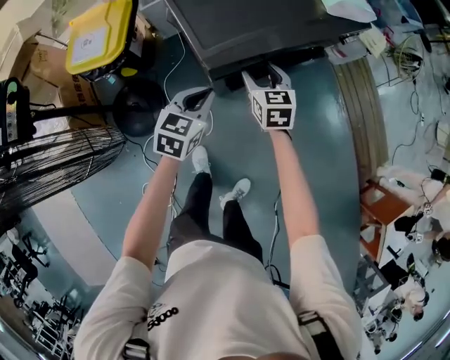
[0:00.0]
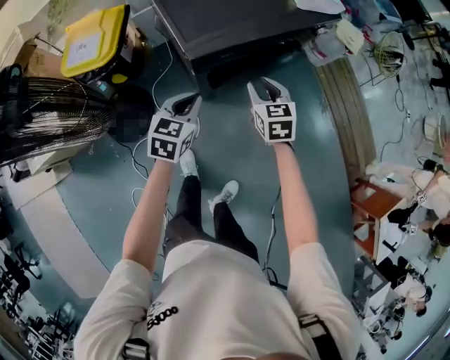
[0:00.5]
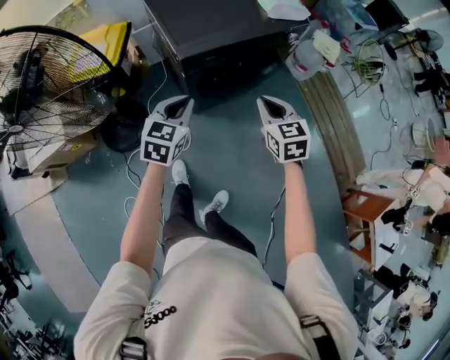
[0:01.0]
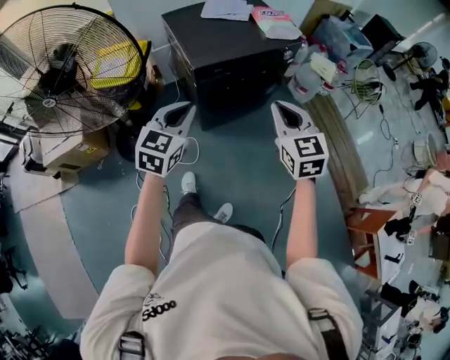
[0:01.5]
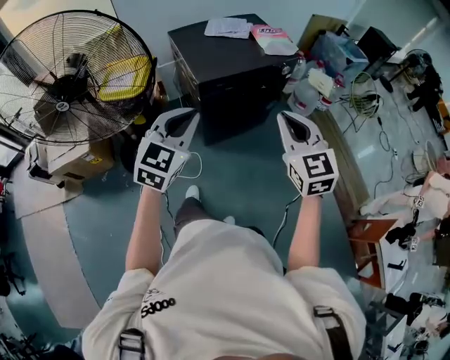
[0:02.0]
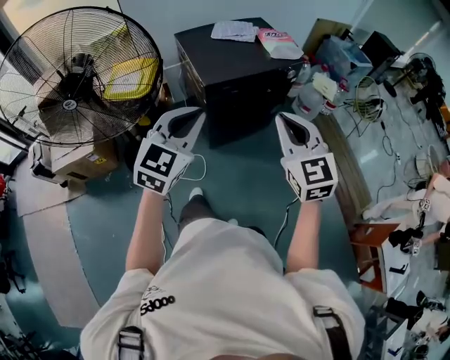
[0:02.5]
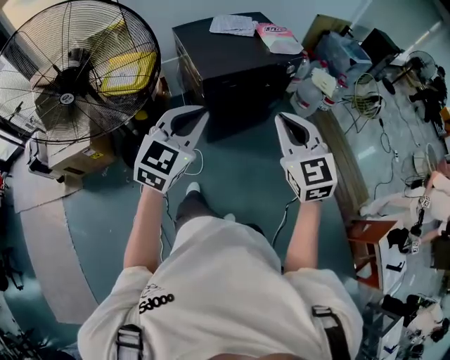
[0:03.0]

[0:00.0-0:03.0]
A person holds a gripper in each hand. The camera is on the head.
0:00.0 to 0:01.5: The left gripper heads backward and upward, covering roughly 35 cm, and swivels approximately 20 degrees; the right gripper shifts roughly 50 cm backward, upward and to the right, rotates roughly 20 degrees, and closes its fingers.
0:01.5 to 0:03.0: The right gripper heads backward and upward, covering some 10 cm. Meanwhile the left gripper moves upward and backward, about 10 cm.

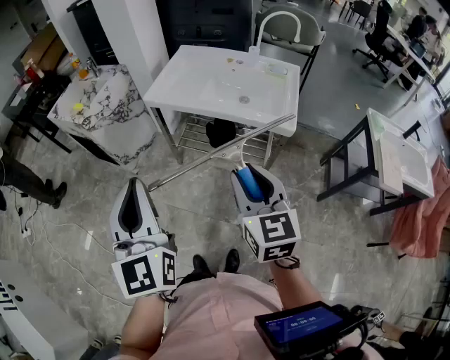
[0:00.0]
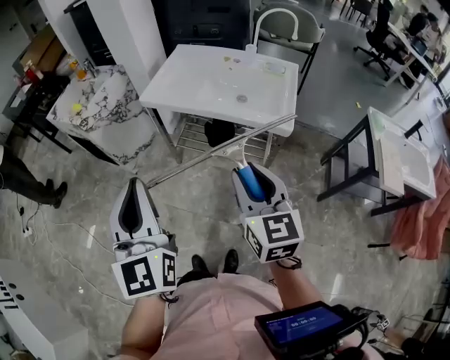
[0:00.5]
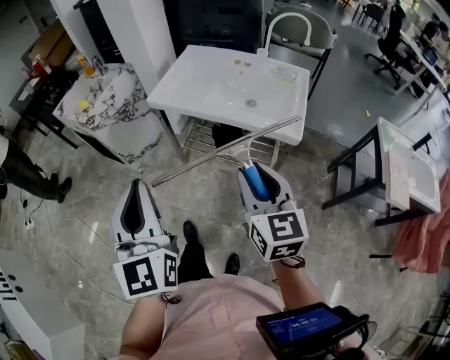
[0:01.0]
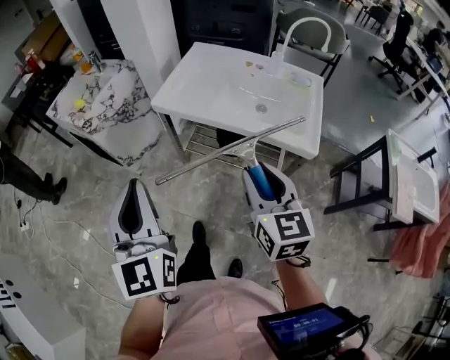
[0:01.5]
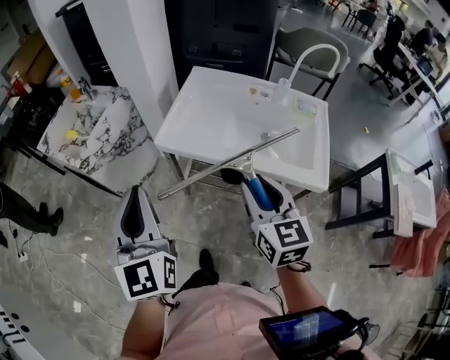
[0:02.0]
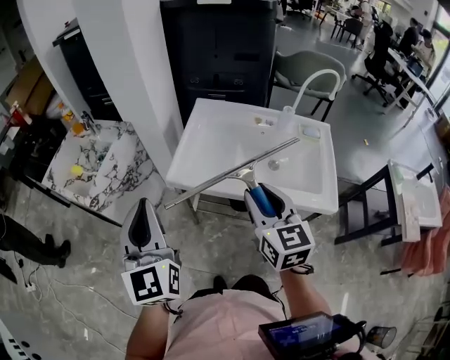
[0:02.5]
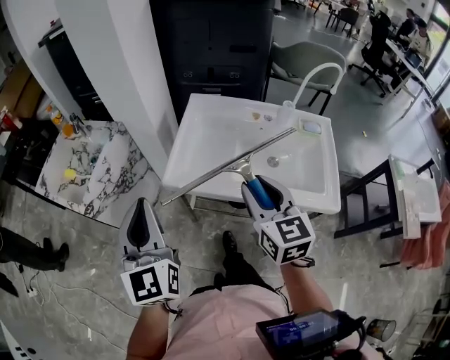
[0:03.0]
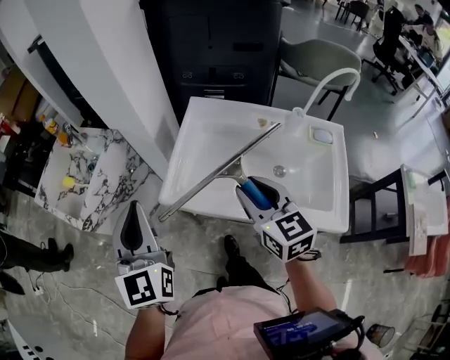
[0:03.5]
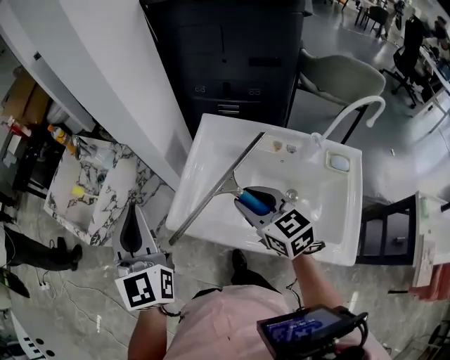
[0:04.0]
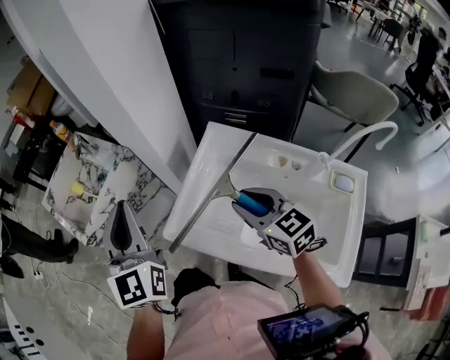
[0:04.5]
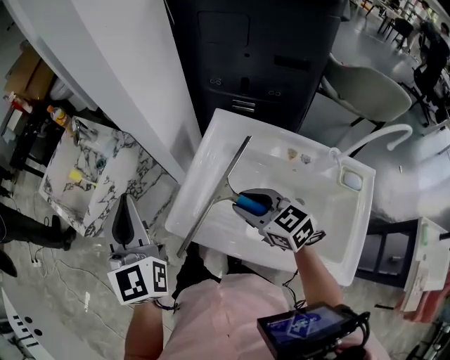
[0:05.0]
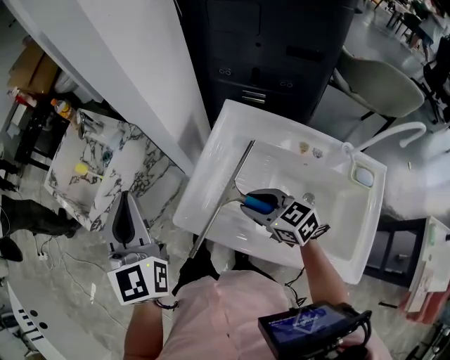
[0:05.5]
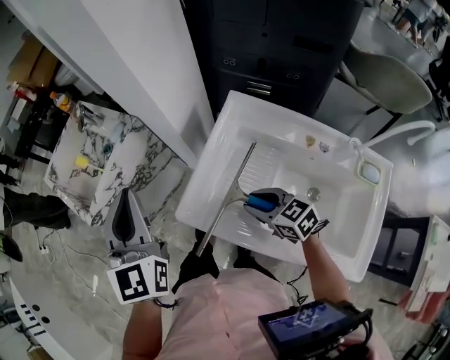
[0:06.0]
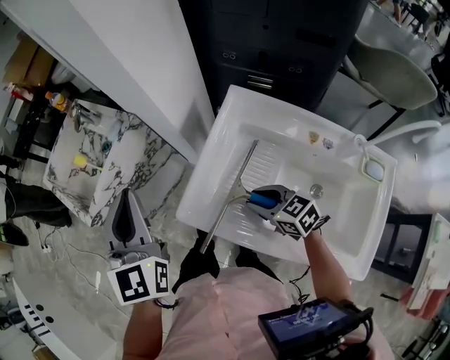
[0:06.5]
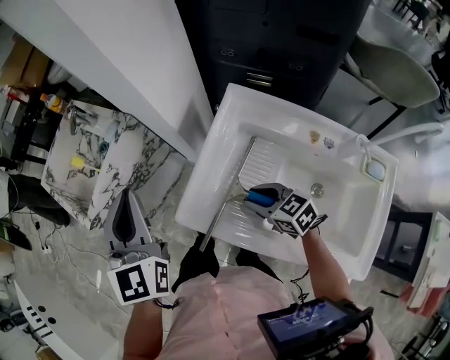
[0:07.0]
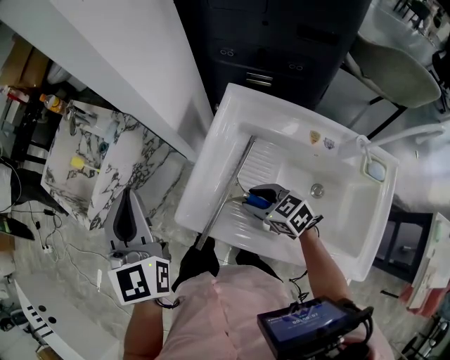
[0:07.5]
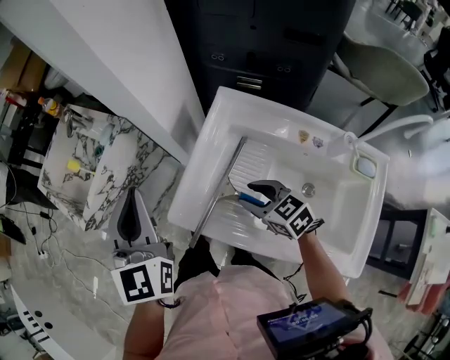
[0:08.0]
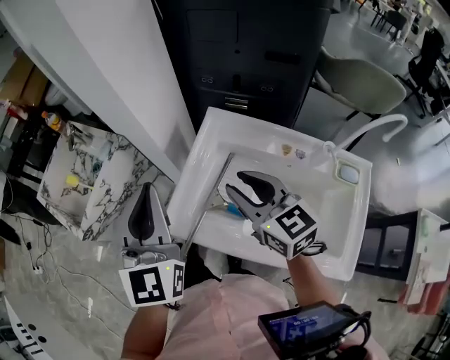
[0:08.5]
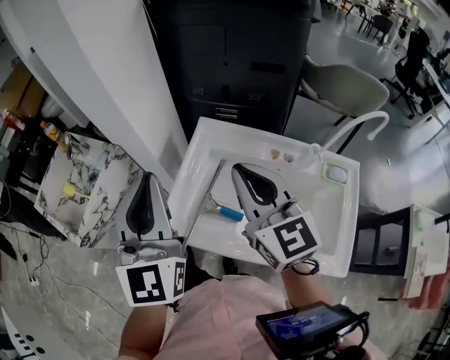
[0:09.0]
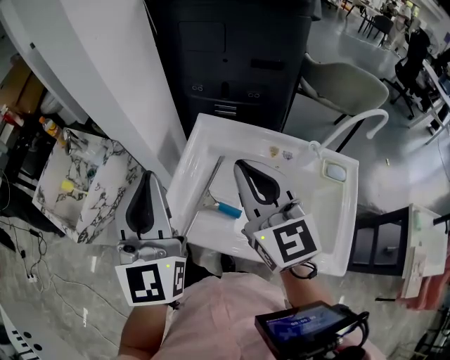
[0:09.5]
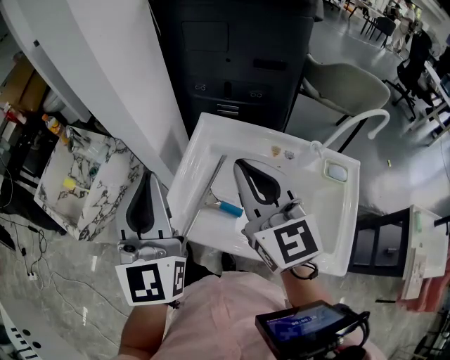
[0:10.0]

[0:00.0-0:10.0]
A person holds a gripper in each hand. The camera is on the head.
0:00.0 to 0:02.0: Both grippers travel together forward, some 25 cm.
0:02.0 to 0:04.0: Both grippers travel together forward, some 30 cm. The right gripper rotates approximately 20 degrees.
0:04.0 to 0:06.0: The right gripper is displaced downward by roughly 15 cm, and swivels roughly 30 degrees, while the left gripper moves forward, roughly 5 cm.
0:06.0 to 0:08.0: The grippers make only small movements.
0:08.0 to 0:10.0: The left gripper heads upward and to the right, covering approximately 10 cm. The right gripper travels upward by some 30 cm, angles its fingers upward, by some 30 degrees, and closes up.

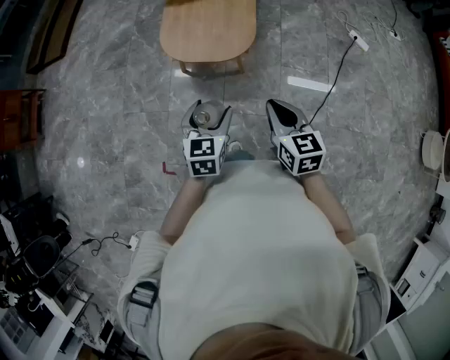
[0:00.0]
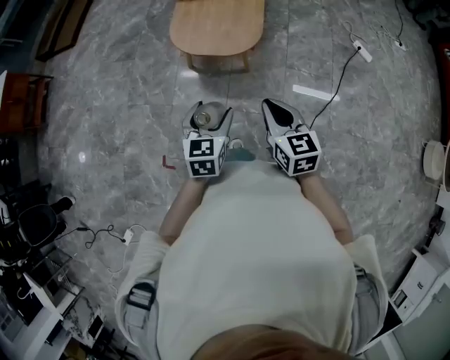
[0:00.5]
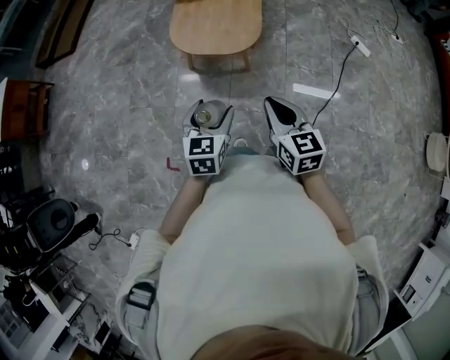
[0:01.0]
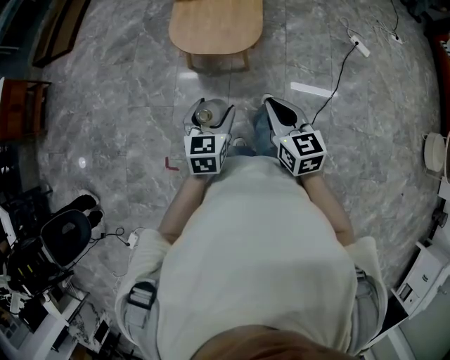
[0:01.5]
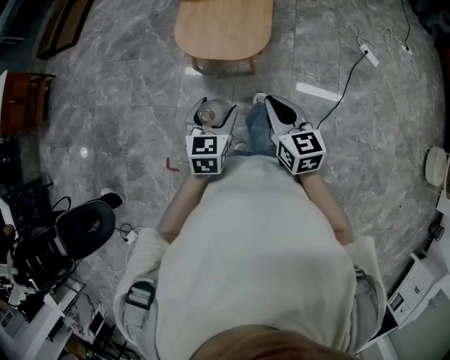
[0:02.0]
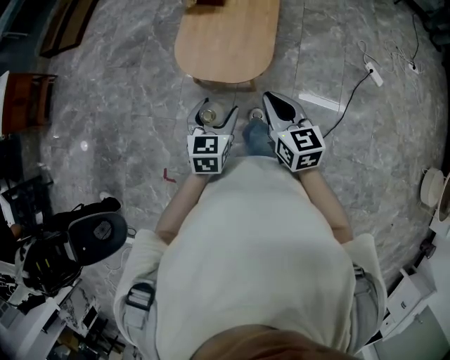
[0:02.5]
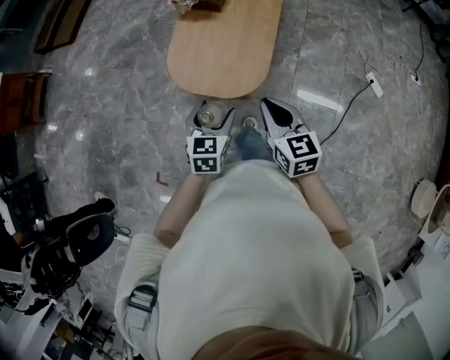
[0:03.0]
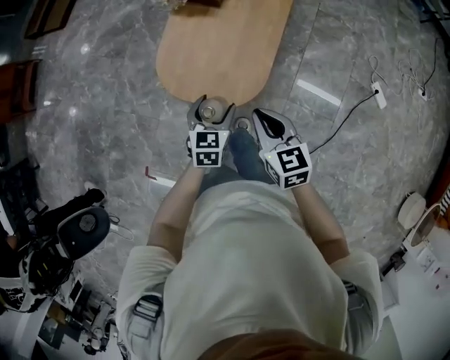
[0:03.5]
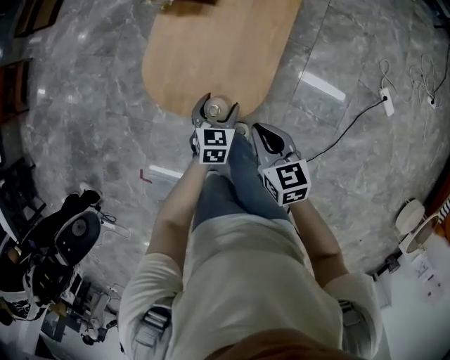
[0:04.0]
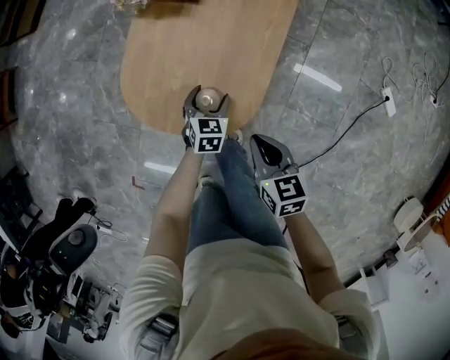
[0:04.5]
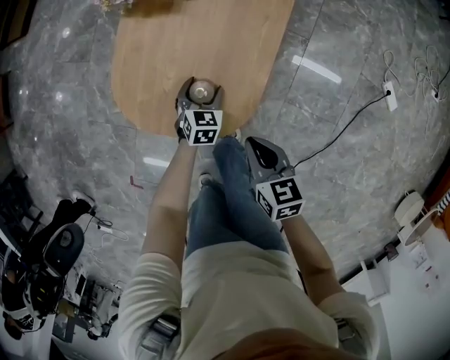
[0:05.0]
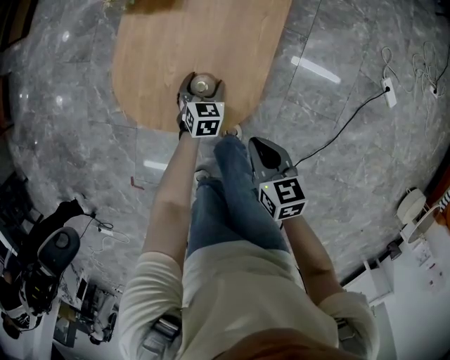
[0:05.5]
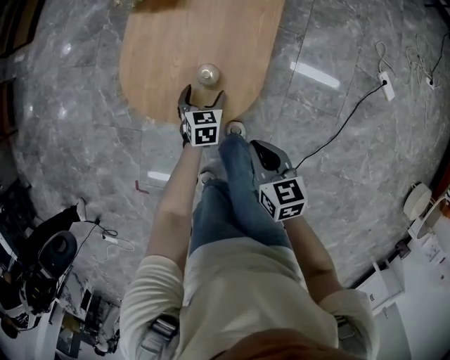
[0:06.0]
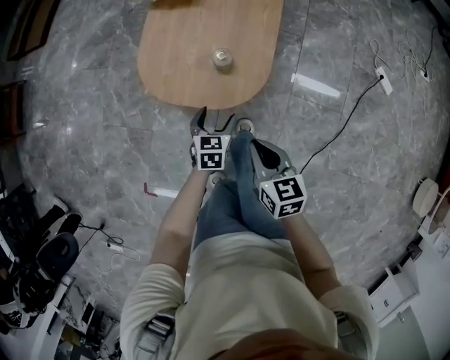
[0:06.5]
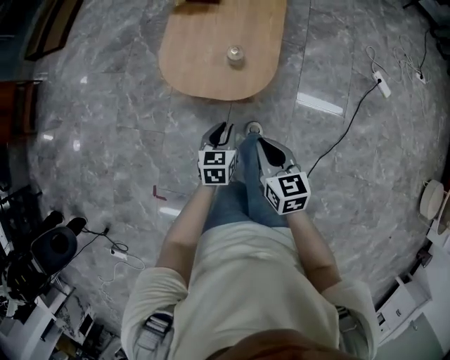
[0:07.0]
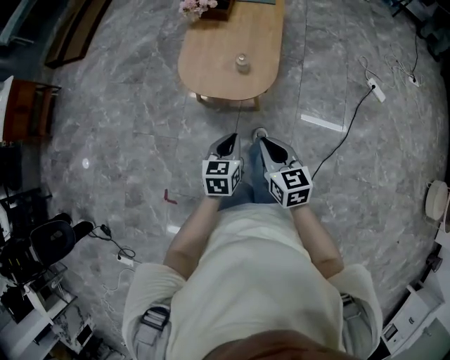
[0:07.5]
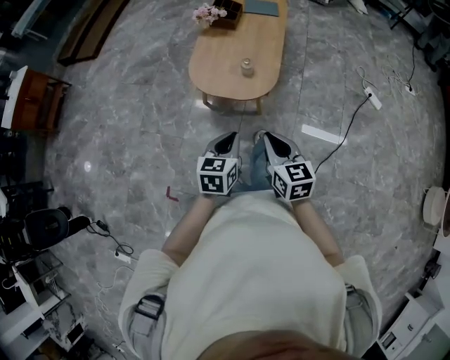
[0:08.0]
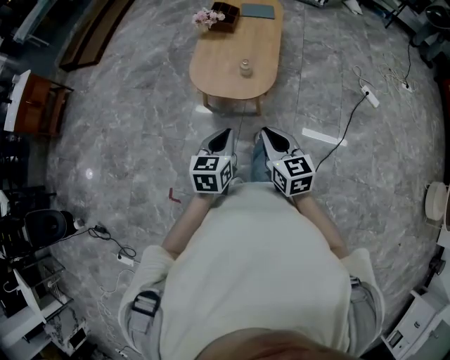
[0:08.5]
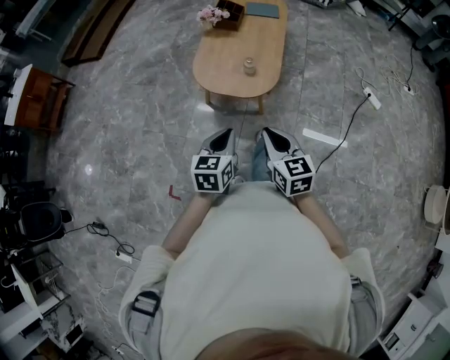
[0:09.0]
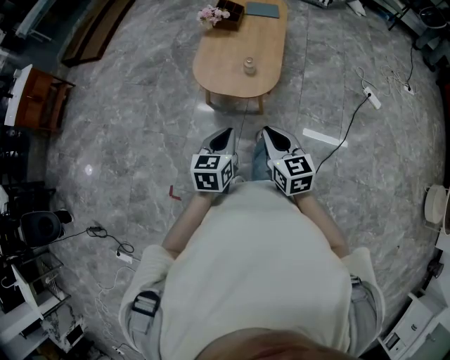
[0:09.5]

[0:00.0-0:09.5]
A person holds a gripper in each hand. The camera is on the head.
0:00.0 to 0:02.0: The right gripper reaches approximately 5 cm backward, then returns.
0:02.0 to 0:04.0: The right gripper moves forward and downward, some 35 cm, and rotates some 20 degrees. The left gripper is displaced forward, downward and to the right by roughly 50 cm.
0:04.0 to 0:05.5: The left gripper heads downward and forward, covering some 15 cm. Meanwhile the right gripper heads downward, covering approximately 10 cm.
0:05.5 to 0:07.5: The right gripper moves backward, upward and to the left, about 35 cm, and rotates some 20 degrees, while the left gripper travels backward and upward by roughly 50 cm, turns by roughly 20 degrees, and closes up.
0:07.5 to 0:09.5: Both grippers move upward and backward, some 10 cm.

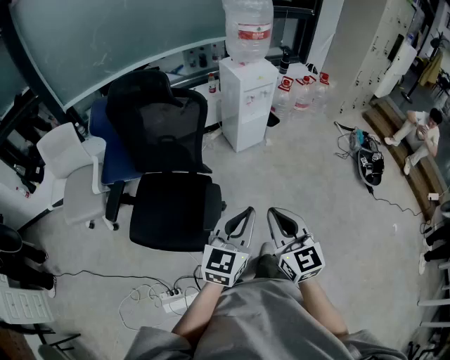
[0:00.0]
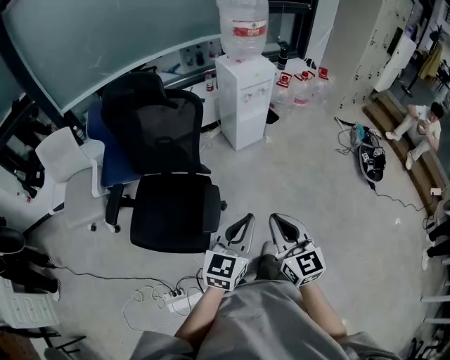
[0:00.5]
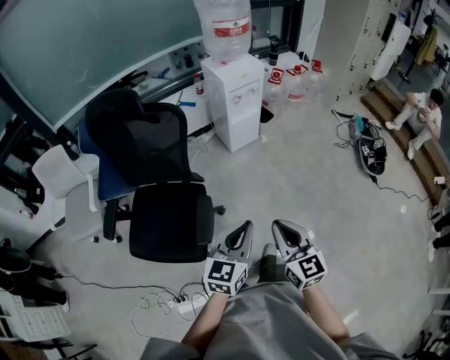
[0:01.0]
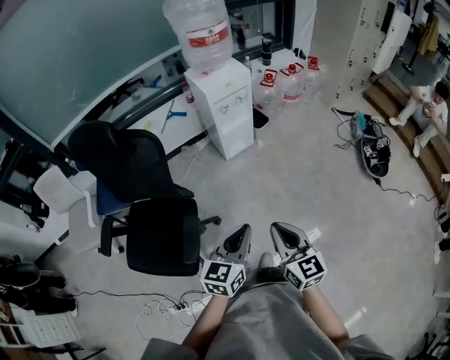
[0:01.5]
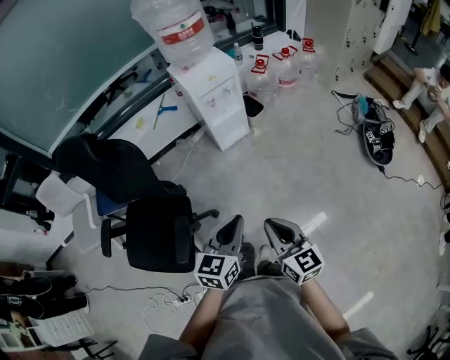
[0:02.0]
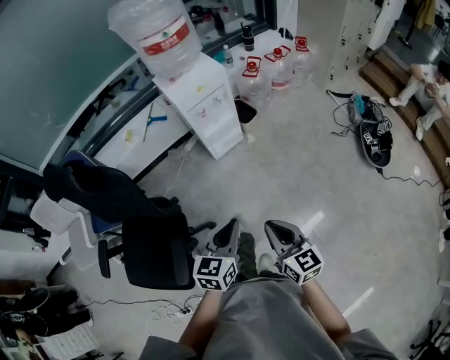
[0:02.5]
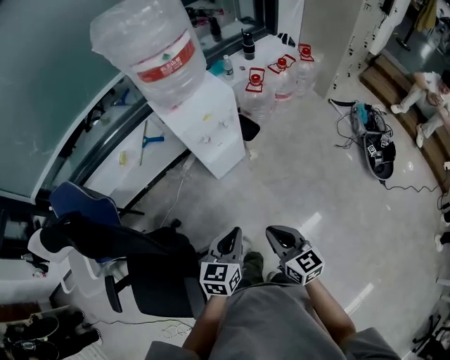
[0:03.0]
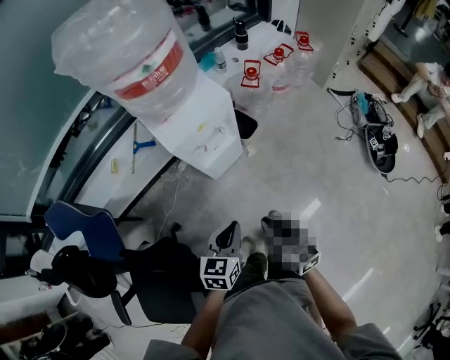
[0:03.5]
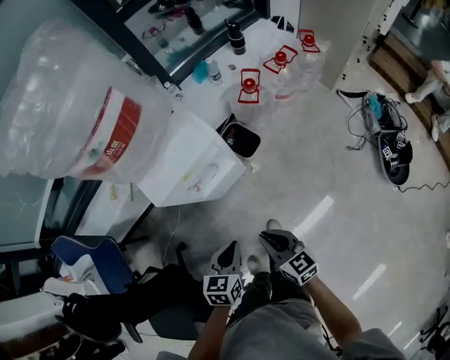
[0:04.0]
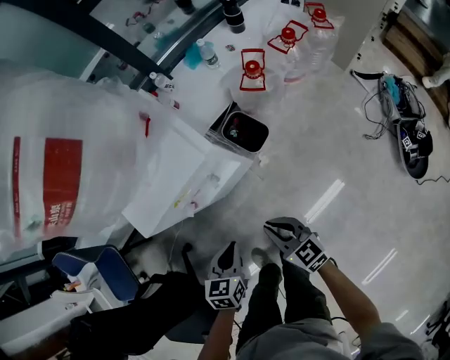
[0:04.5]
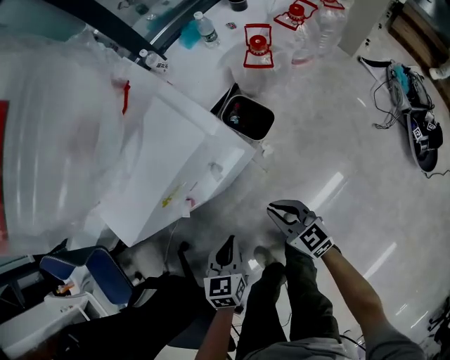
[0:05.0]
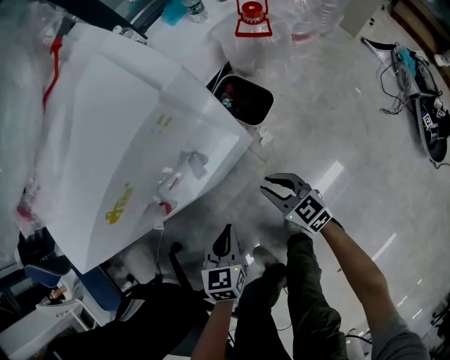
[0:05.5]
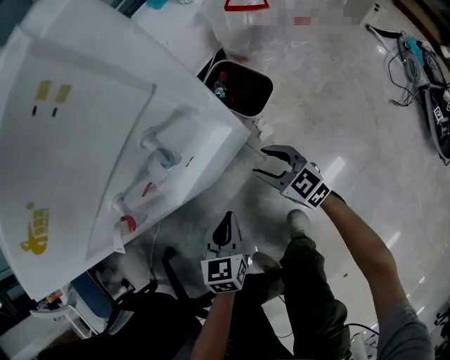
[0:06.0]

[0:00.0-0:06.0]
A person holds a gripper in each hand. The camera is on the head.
0:00.0 to 0:02.0: Both grippers move to the right and forward, some 30 cm.
0:02.0 to 0:04.0: The pair of grippers is taken forward, about 50 cm. The left gripper is displaced downward by some 20 cm, and swivels approximately 20 degrees.
0:04.0 to 0:06.0: The left gripper heads downward, covering approximately 40 cm. The right gripper travels downward and forward by about 50 cm, and opens its fingers.
